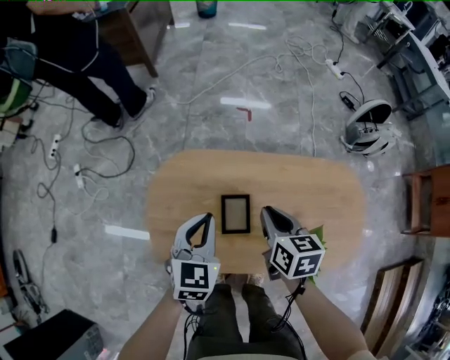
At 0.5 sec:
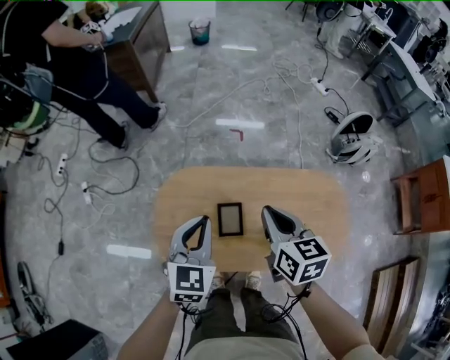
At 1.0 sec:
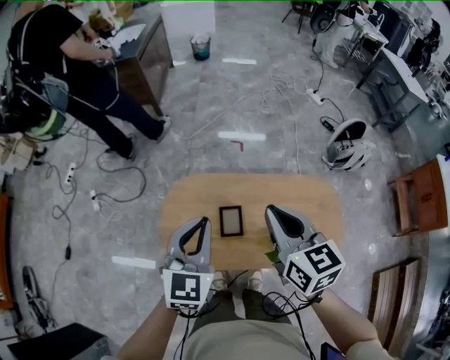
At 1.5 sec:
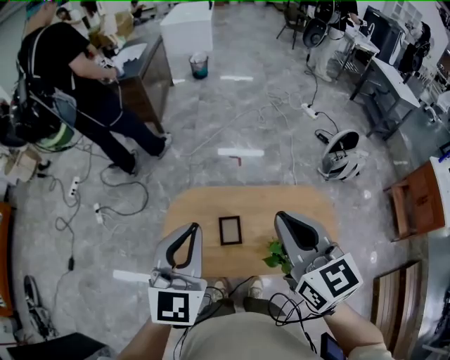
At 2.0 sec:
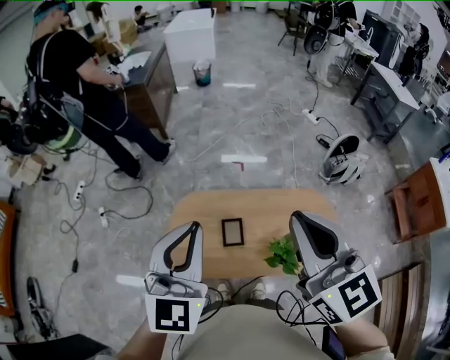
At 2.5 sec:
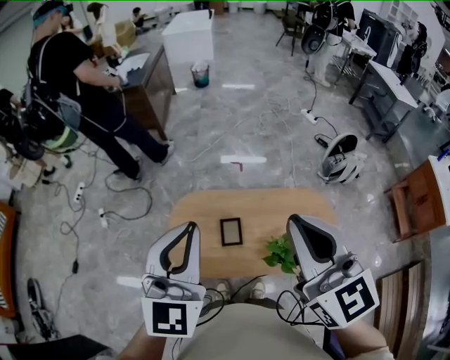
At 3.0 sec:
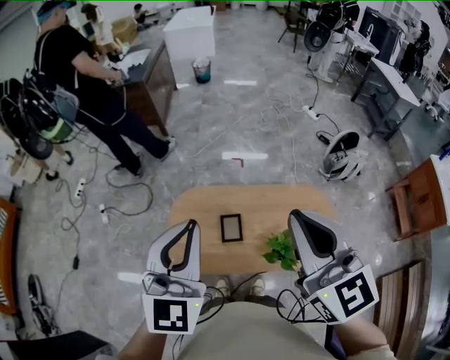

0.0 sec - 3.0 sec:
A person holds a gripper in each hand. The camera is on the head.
0.0 sec - 1.5 sec: Both grippers move upward, approximately 35 cm. The left gripper rotates about 30 degrees. The right gripper swivels some 40 degrees.
1.5 sec - 3.0 sec: The right gripper travels upward and backward by approximately 10 cm. Meanwhile the left gripper moves upward, approximately 5 cm.

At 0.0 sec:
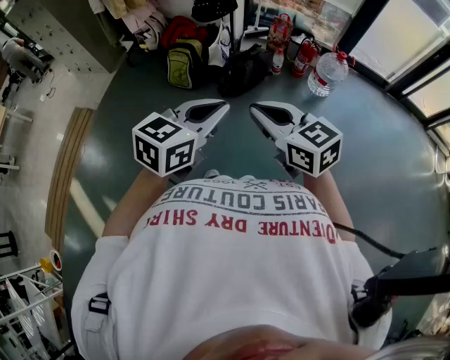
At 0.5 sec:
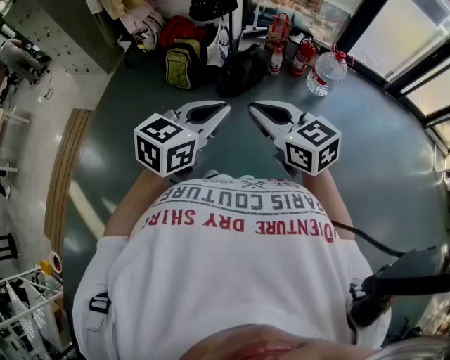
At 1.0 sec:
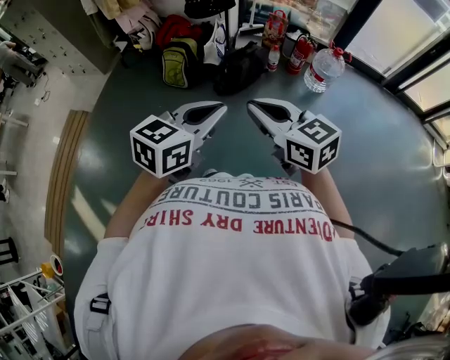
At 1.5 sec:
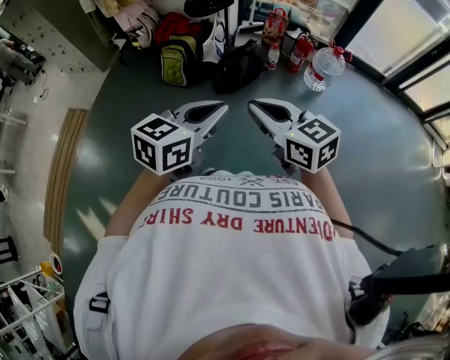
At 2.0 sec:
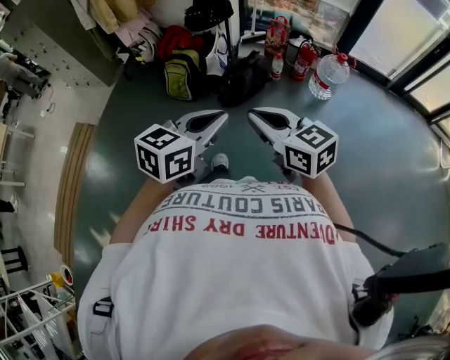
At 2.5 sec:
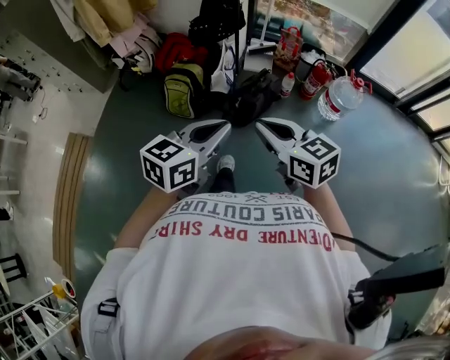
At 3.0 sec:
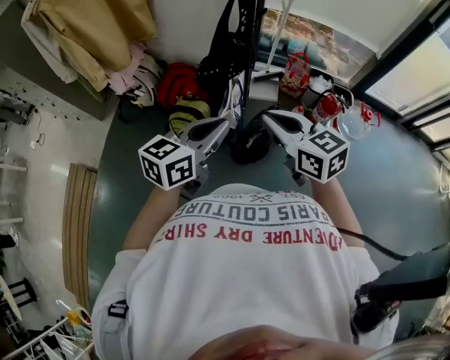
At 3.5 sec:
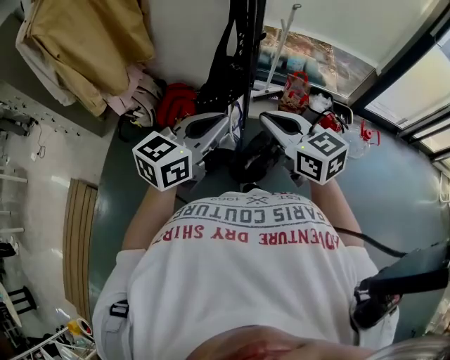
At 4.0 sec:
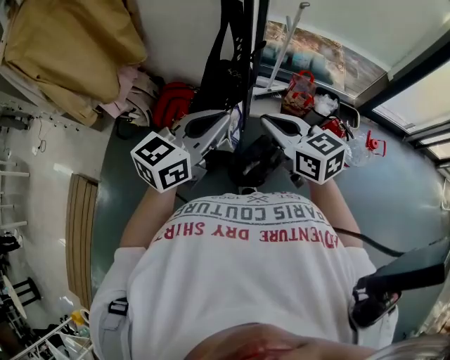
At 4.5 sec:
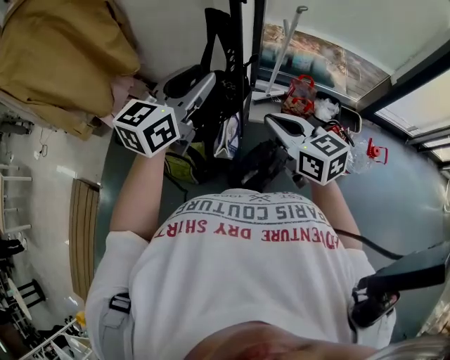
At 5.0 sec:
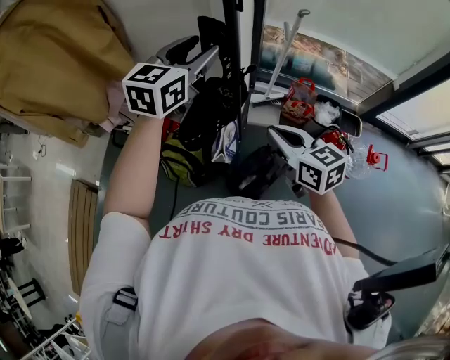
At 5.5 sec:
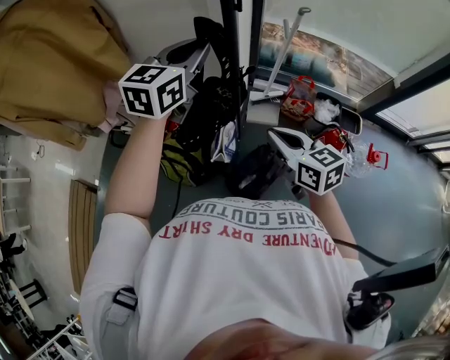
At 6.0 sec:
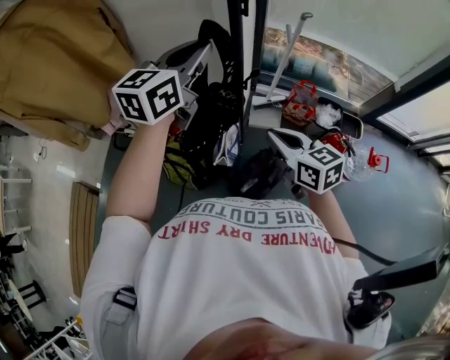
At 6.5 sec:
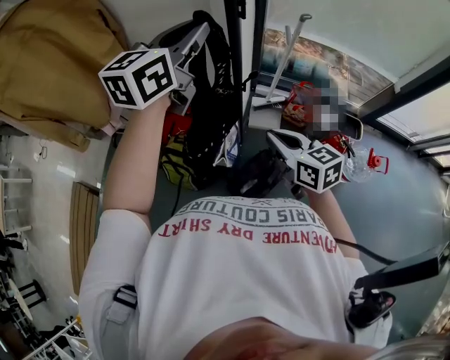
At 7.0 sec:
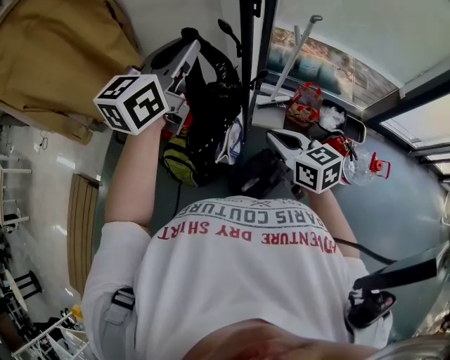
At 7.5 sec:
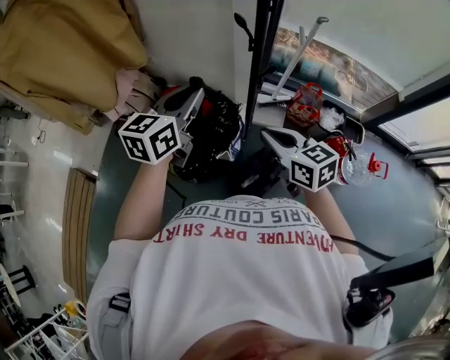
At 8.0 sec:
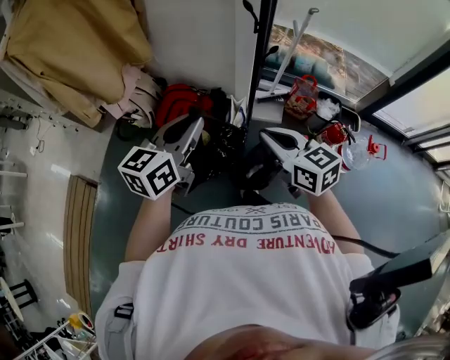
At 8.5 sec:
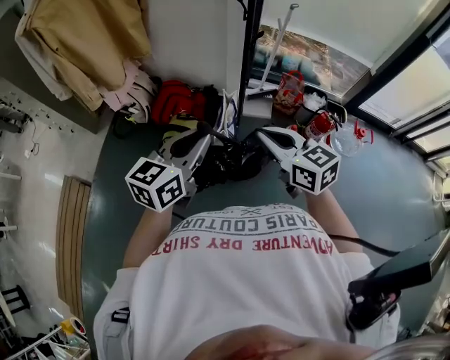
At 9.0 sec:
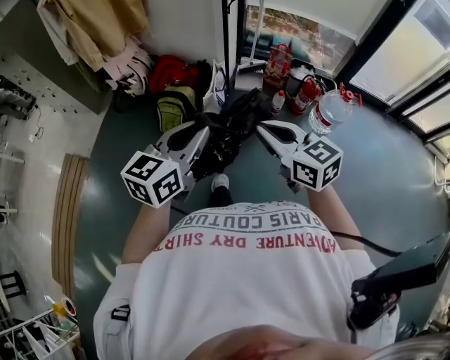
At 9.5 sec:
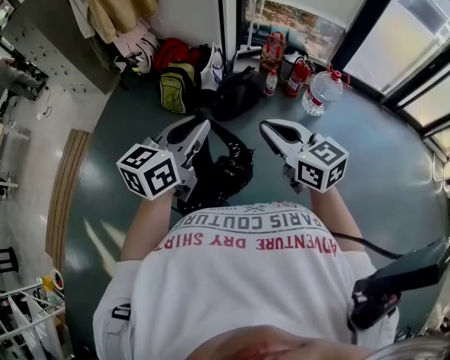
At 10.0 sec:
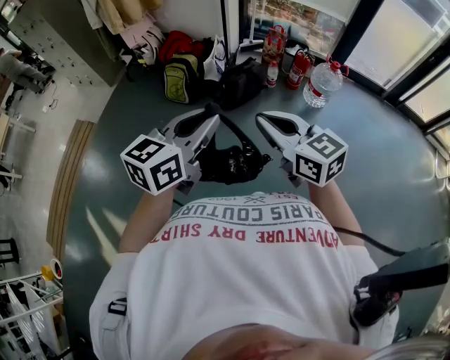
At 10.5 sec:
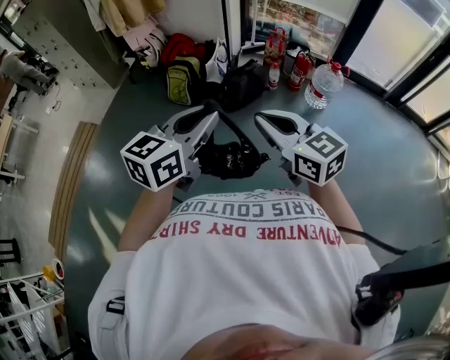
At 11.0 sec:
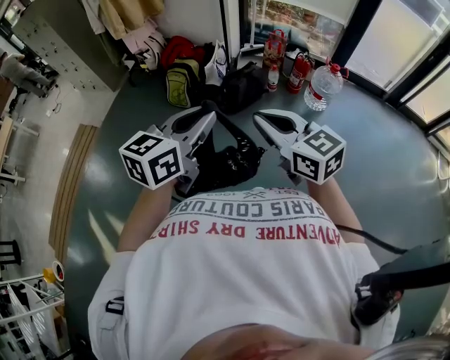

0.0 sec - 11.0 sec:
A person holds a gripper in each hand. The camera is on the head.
0.0 sec - 2.0 sec: Both grippers travel together forward, approximately 5 cm.
2.0 sec - 3.5 sec: Both grippers are carried forward, approximately 60 cm.
3.5 sec - 5.5 sec: The left gripper shifts some 40 cm forward, and opens, then closes again. The right gripper heads forward, downward and to the right, covering roughly 25 cm.
5.5 sec - 7.5 sec: The right gripper travels to the left by some 5 cm. The left gripper moves backward, to the left and downward, approximately 15 cm.
7.5 sec - 9.0 sec: The pair of grippers is taken backward, roughly 60 cm.
9.0 sec - 11.0 sec: Both grippers move backward, some 35 cm.

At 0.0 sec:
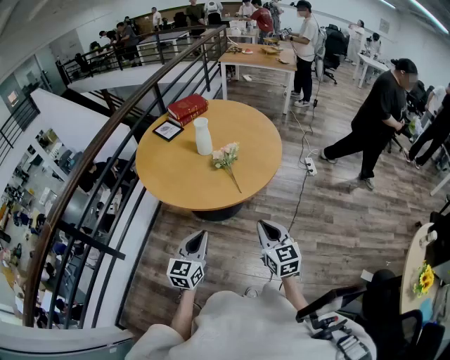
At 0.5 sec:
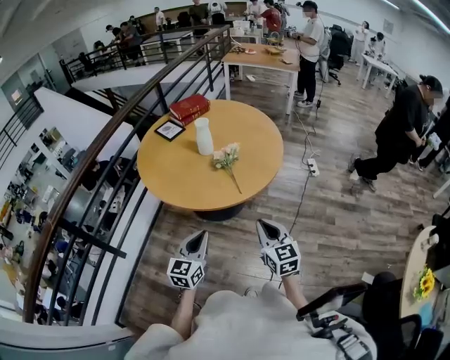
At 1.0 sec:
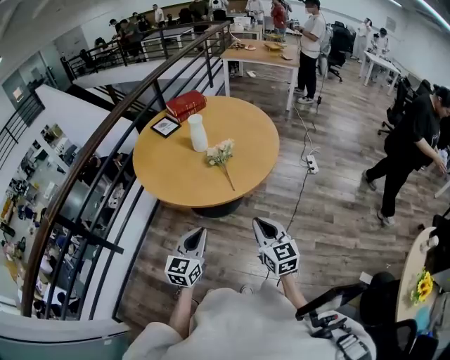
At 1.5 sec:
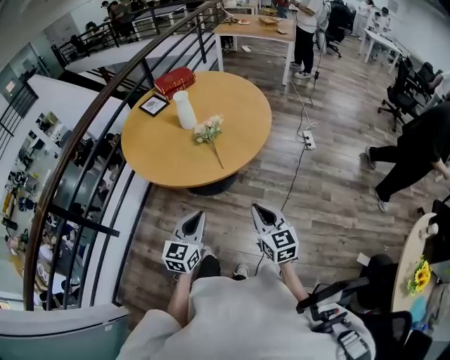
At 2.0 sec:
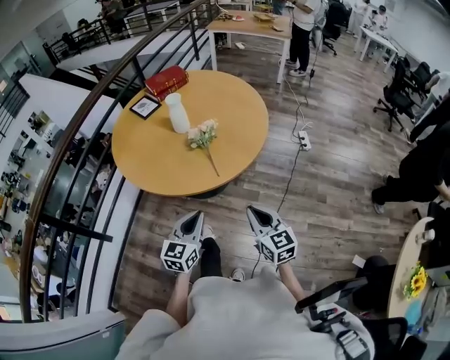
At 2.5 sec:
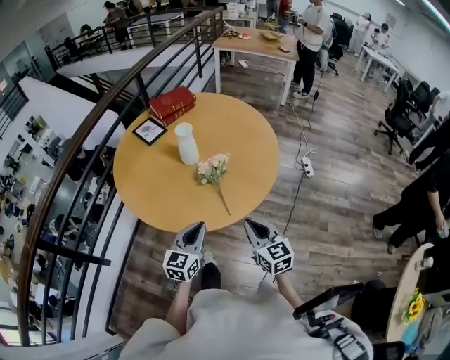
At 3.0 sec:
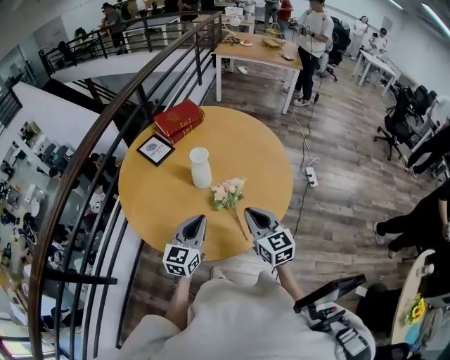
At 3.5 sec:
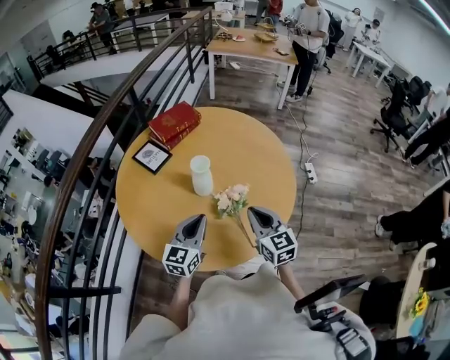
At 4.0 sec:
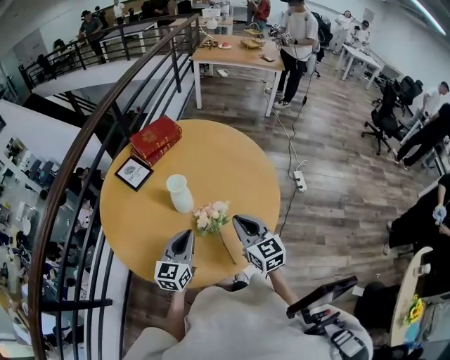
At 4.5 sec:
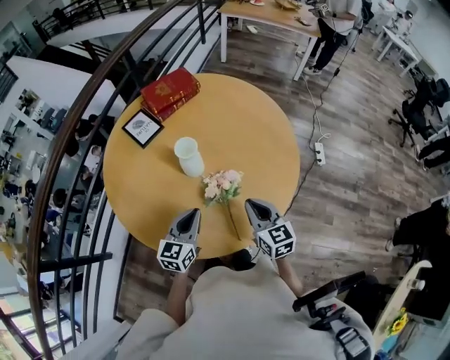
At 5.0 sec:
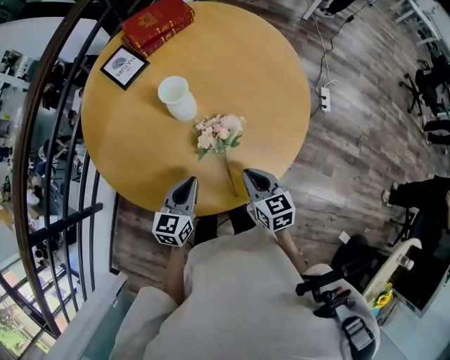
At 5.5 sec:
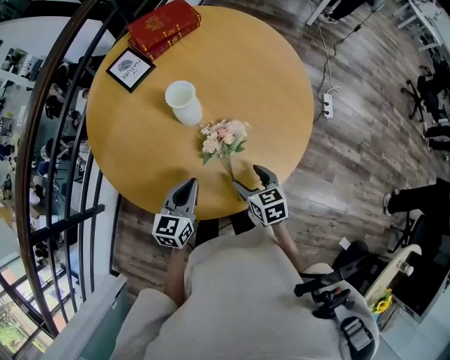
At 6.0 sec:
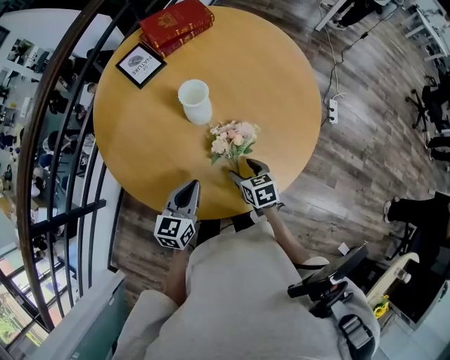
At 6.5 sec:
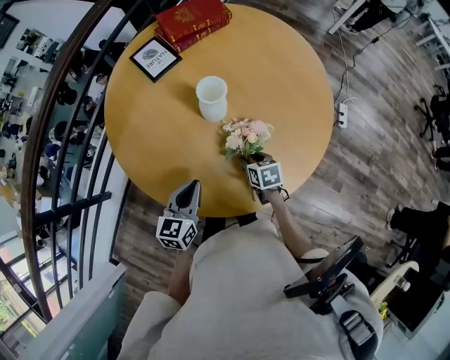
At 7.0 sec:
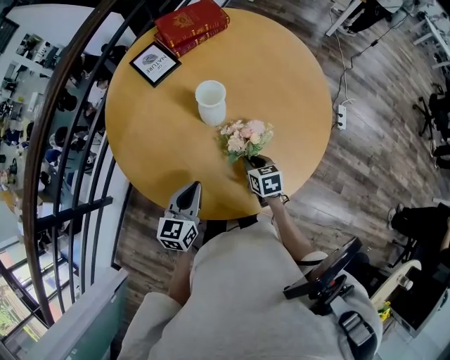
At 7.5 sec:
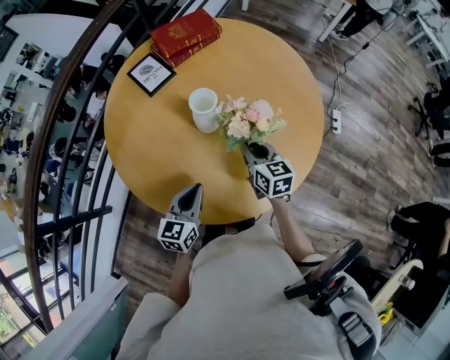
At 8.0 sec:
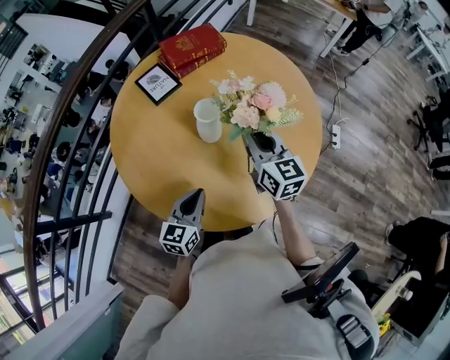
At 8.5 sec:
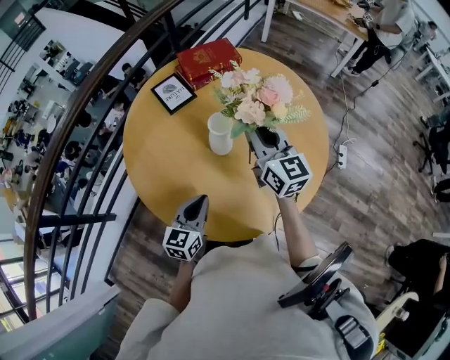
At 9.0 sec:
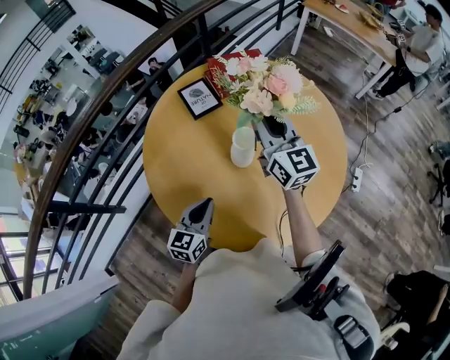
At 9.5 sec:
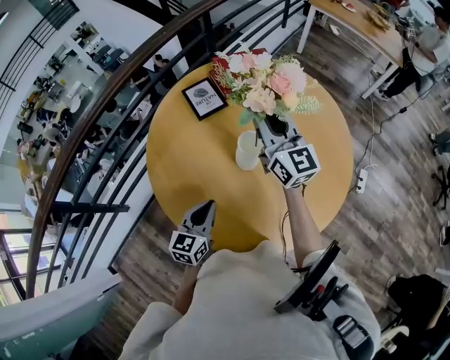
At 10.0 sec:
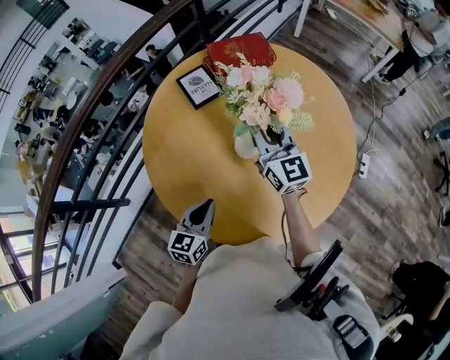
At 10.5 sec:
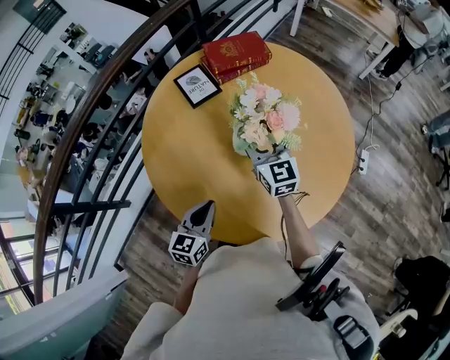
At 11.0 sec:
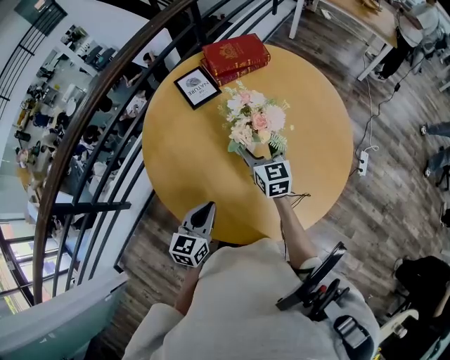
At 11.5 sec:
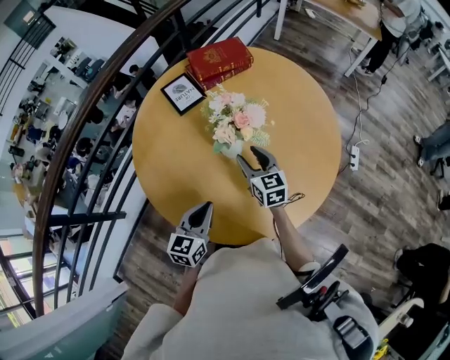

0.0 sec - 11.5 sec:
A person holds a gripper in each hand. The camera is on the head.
0.0 sec - 2.0 sec: The right gripper is displaced to the right by approximately 5 cm; the left gripper is displaced to the right by some 10 cm.
2.0 sec - 4.0 sec: Both grippers move forward, some 30 cm.
4.0 sec - 6.0 sec: The left gripper is displaced downward and backward by roughly 10 cm, and swivels approximately 20 degrees. The right gripper goes some 25 cm downward, tips its fingers downward by about 40 degrees, and opens its fingers.
6.0 sec - 7.5 sec: The right gripper moves upward and forward, about 15 cm, rotates some 30 degrees, and closes up.
7.5 sec - 9.5 sec: The left gripper moves roughly 5 cm, while the right gripper shifts some 25 cm upward and forward, and angles its fingers upward, by about 30 degrees.
9.5 sec - 11.5 sec: The right gripper shifts about 25 cm downward and backward, tilts its fingers approximately 30 degrees downward, and opens up.

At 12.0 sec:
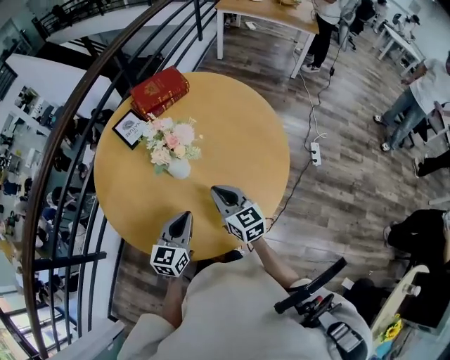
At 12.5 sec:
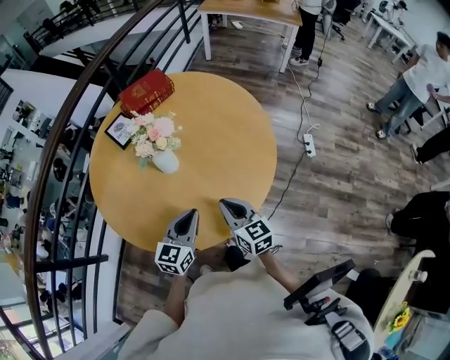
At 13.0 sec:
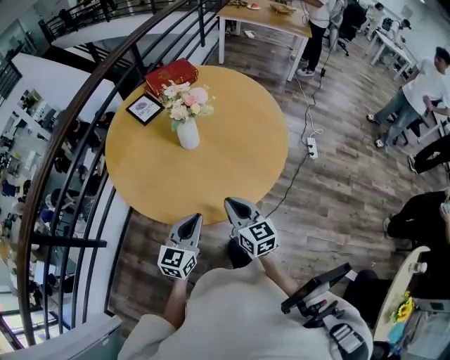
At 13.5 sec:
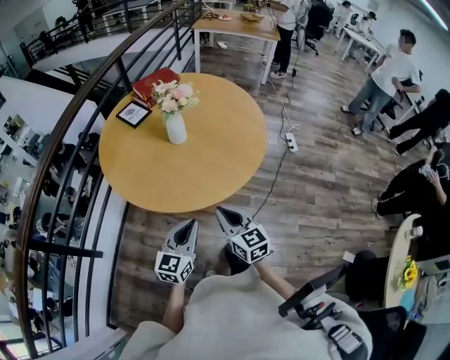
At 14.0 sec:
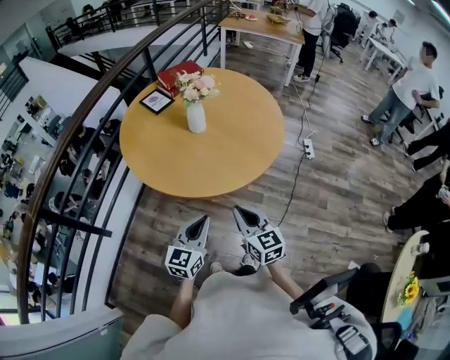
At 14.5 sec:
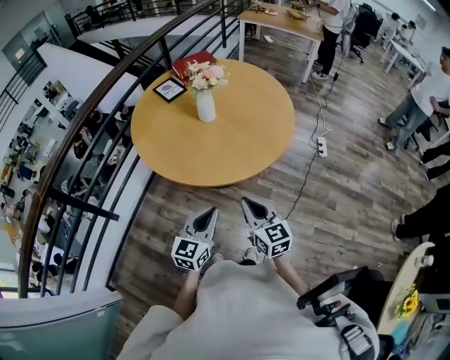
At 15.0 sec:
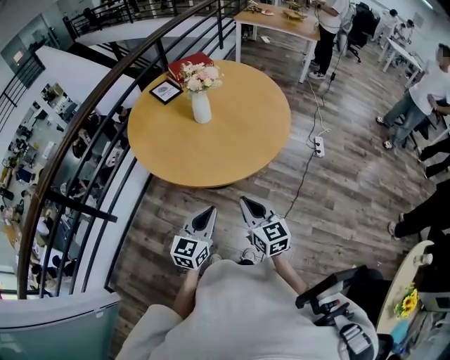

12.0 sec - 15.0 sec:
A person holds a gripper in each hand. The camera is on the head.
12.0 sec - 13.5 sec: The grippers both shift backward by approximately 25 cm.
13.5 sec - 15.0 sec: The two grippers go approximately 5 cm to the right.
